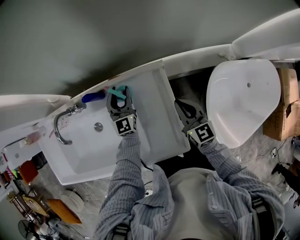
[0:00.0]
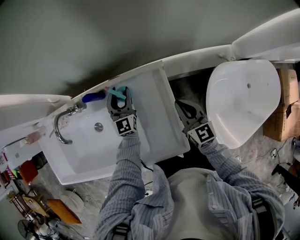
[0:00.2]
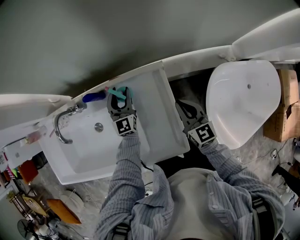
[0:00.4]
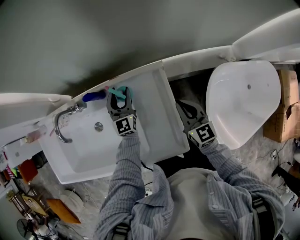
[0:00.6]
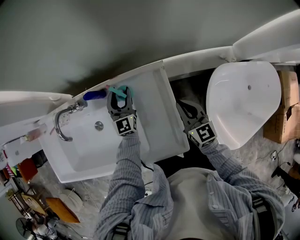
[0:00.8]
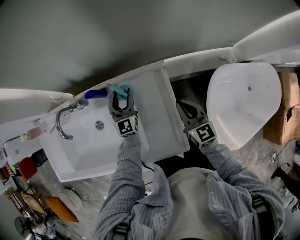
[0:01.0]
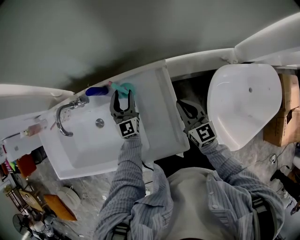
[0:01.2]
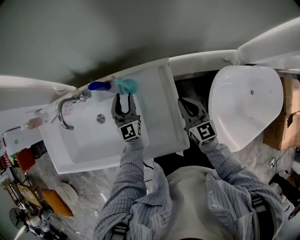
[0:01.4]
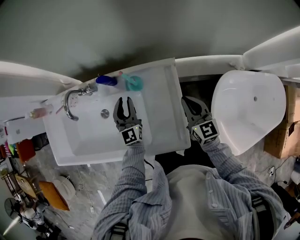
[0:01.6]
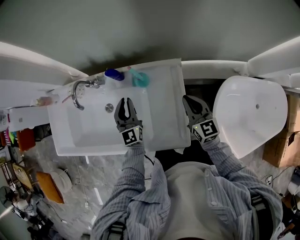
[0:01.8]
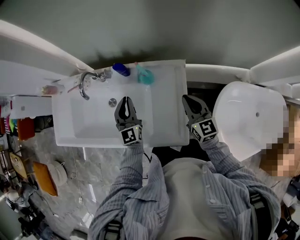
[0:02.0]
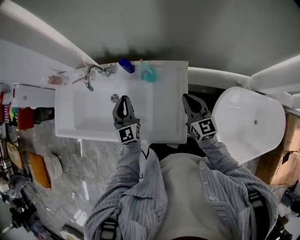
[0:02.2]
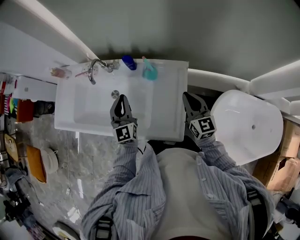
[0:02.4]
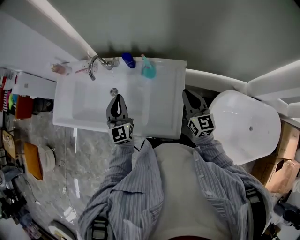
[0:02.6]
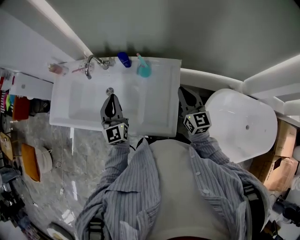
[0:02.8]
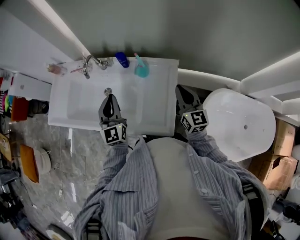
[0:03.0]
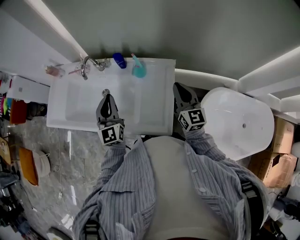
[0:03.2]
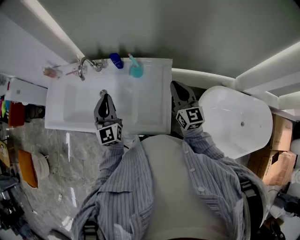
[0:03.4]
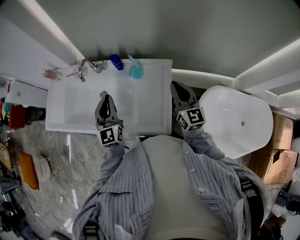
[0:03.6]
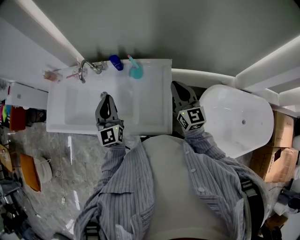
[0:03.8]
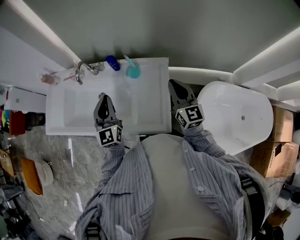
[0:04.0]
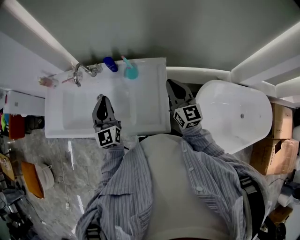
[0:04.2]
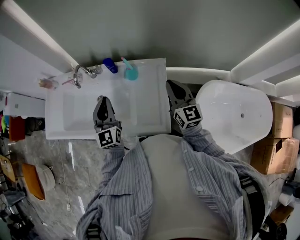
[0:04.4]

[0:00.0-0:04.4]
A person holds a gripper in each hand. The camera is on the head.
0:00.0 to 0:01.4: The left gripper is displaced backward by roughly 5 cm.
0:01.4 to 0:03.0: The right gripper moves upward and backward, about 15 cm. The left gripper shifts roughly 30 cm upward, backward and to the left, and closes its fingers.
0:03.0 to 0:04.4: The grippers make only small movements.

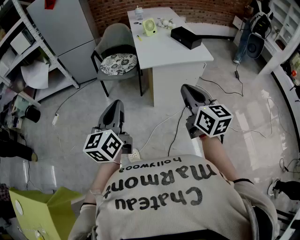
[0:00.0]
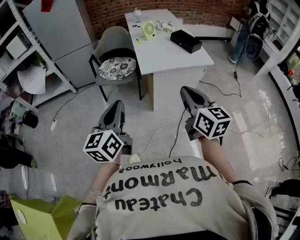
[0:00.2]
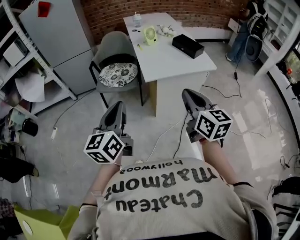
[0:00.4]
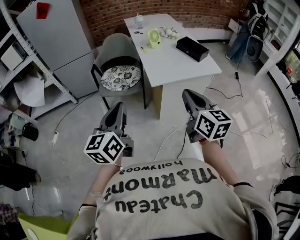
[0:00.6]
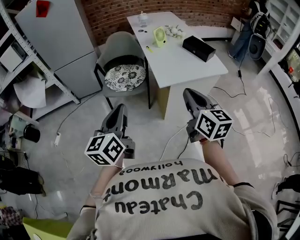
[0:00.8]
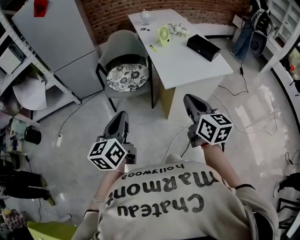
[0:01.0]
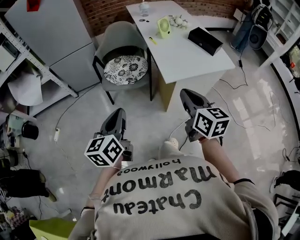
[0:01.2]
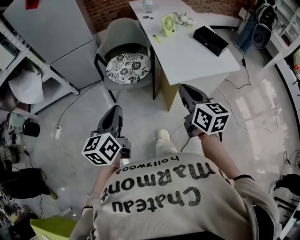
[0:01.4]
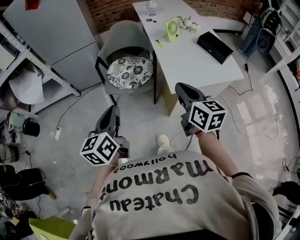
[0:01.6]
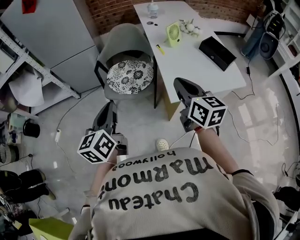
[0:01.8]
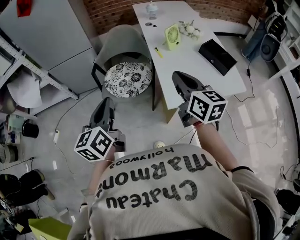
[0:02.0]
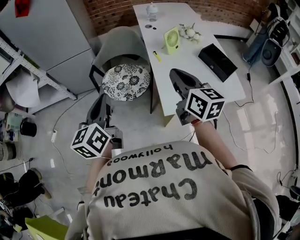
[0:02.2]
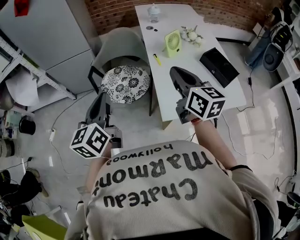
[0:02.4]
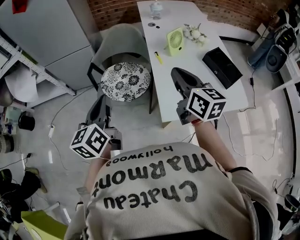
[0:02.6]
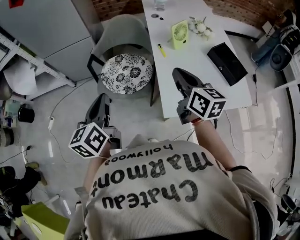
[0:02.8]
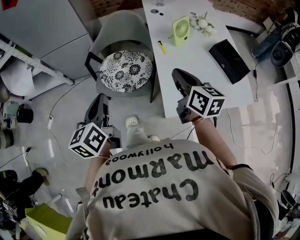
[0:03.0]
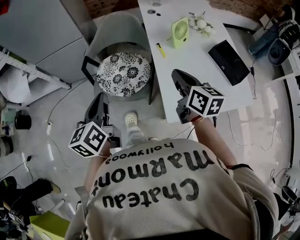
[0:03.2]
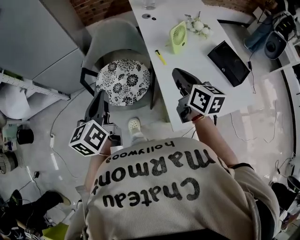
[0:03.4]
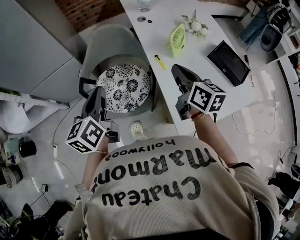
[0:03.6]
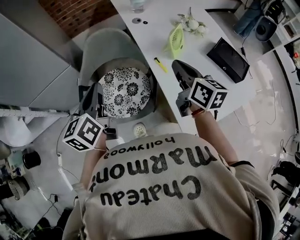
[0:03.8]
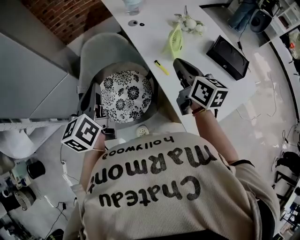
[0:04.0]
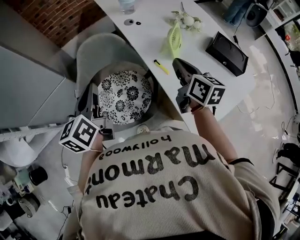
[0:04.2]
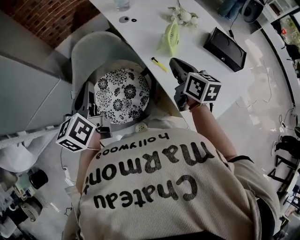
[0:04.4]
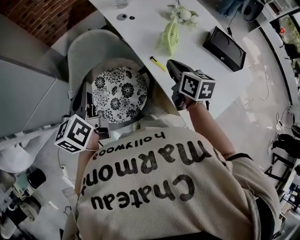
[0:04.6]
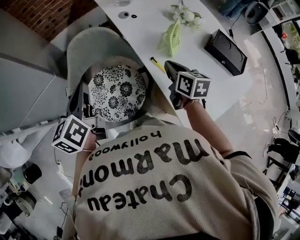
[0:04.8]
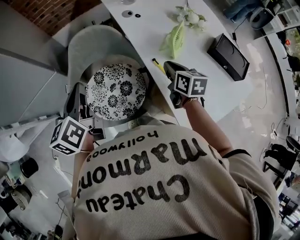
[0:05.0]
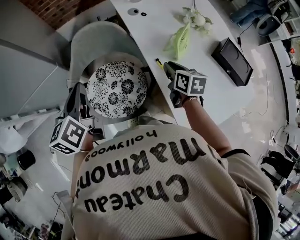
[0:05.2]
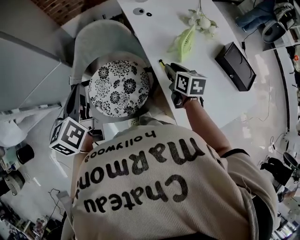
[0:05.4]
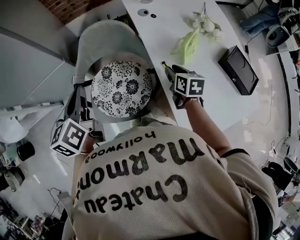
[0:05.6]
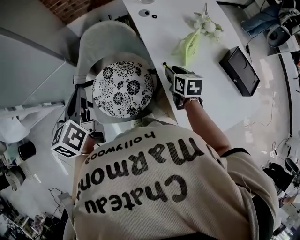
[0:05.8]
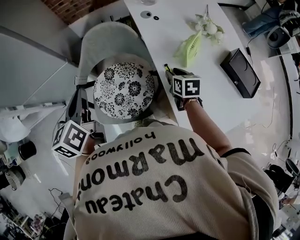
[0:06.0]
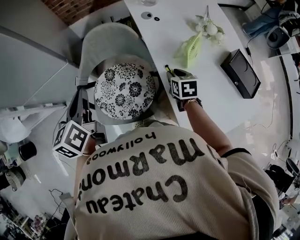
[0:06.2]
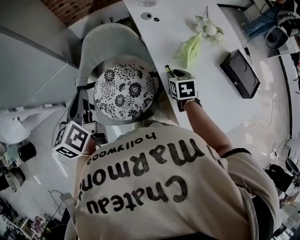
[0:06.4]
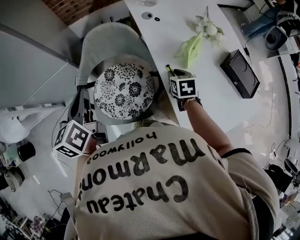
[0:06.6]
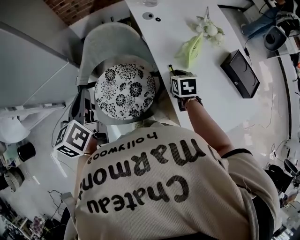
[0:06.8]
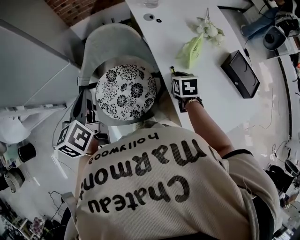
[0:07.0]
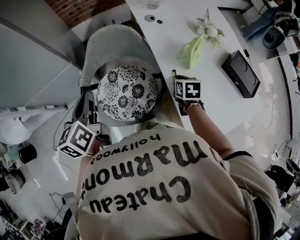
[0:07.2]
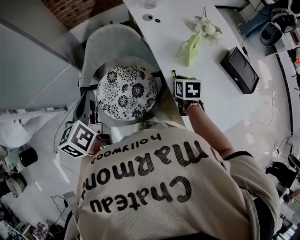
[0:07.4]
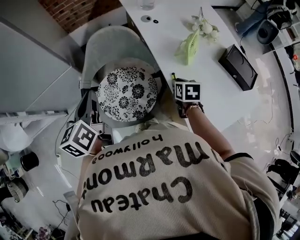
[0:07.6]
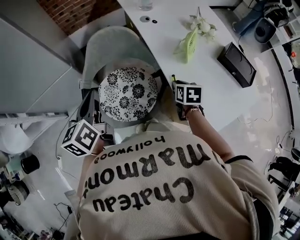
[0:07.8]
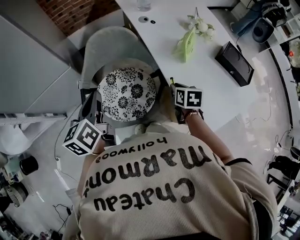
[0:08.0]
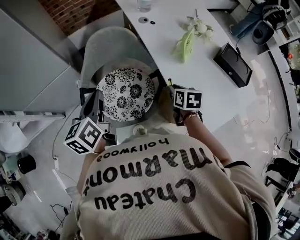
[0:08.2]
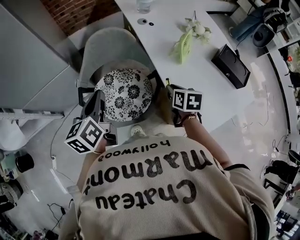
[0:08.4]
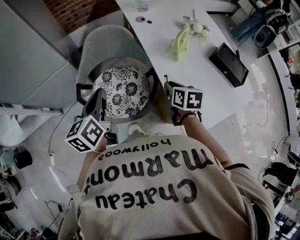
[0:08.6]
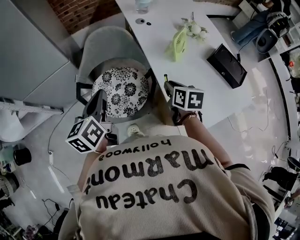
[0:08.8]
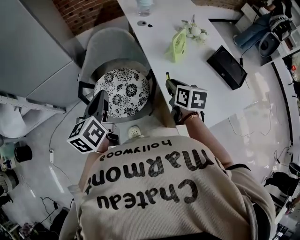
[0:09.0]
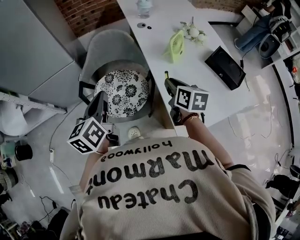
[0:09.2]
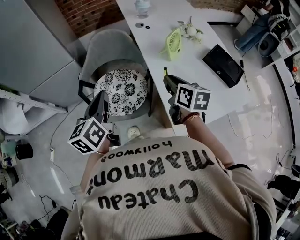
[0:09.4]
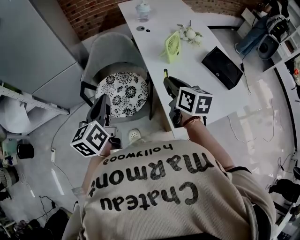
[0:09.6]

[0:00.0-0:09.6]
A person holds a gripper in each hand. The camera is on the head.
0:00.0 to 0:01.6: Both grippers move forward and to the left, about 35 cm.
0:01.6 to 0:03.2: The grippers both shift forward by roughly 25 cm.
0:03.2 to 0:04.8: The left gripper heads forward, covering some 30 cm; the right gripper heads forward and downward, covering about 20 cm, and rotates about 30 degrees.
0:04.8 to 0:06.4: The right gripper is displaced downward by roughly 10 cm, swivels approximately 30 degrees, and opens its fingers.
0:06.4 to 0:08.0: The right gripper moves backward, about 10 cm.
0:08.0 to 0:09.6: The right gripper heads upward and backward, covering roughly 20 cm, and changes its angle by about 30 degrees. The left gripper shifts approximately 20 cm backward and to the right.

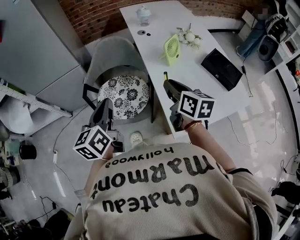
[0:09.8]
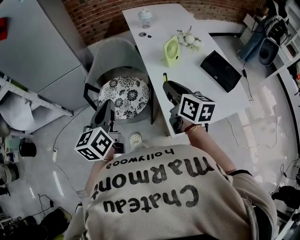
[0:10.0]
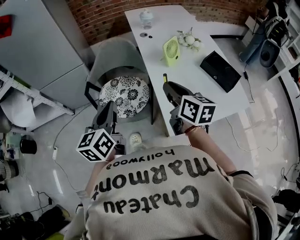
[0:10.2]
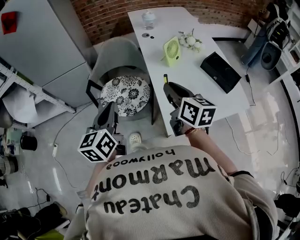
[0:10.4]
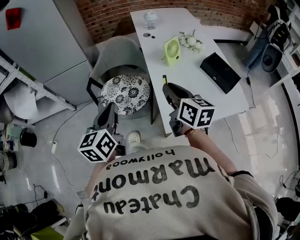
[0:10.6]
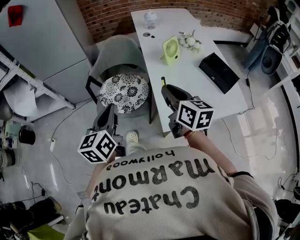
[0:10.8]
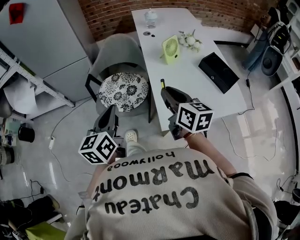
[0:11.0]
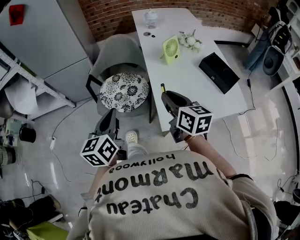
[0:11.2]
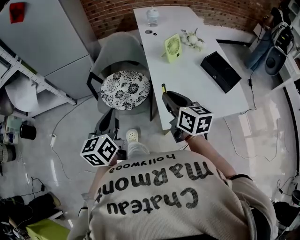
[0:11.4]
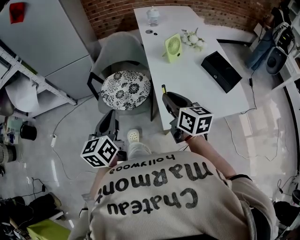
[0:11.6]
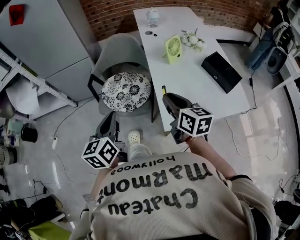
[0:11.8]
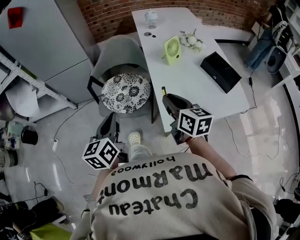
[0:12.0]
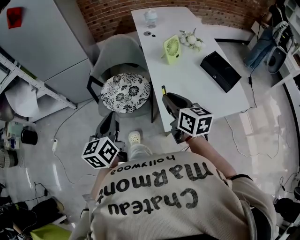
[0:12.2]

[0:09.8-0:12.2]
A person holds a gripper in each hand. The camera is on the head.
0:09.8 to 0:11.0: Both grippers travel together backward, approximately 10 cm.
0:11.0 to 0:12.2: The grippers make only small movements.

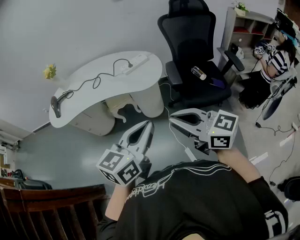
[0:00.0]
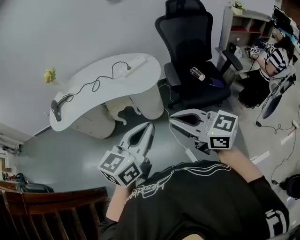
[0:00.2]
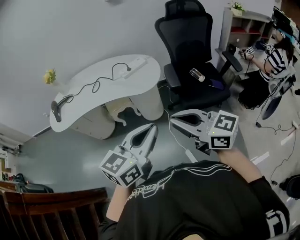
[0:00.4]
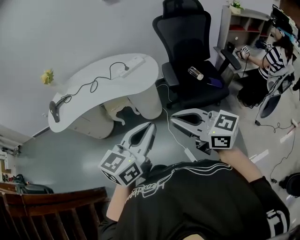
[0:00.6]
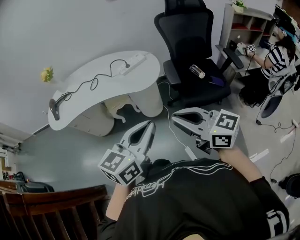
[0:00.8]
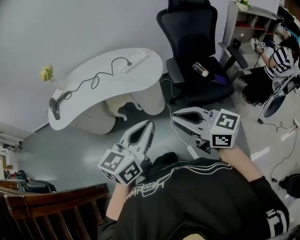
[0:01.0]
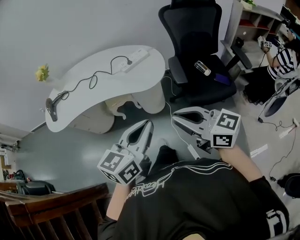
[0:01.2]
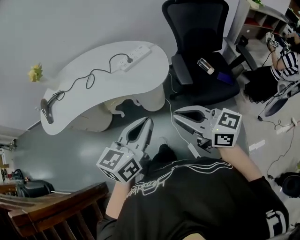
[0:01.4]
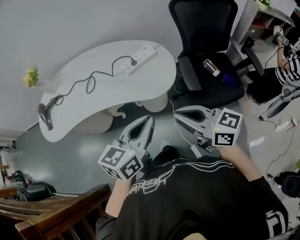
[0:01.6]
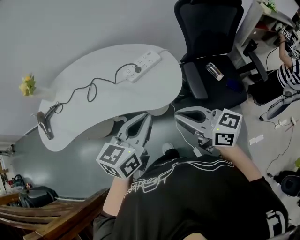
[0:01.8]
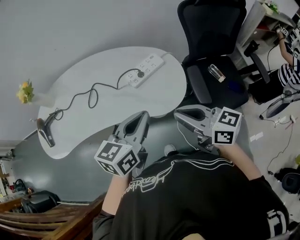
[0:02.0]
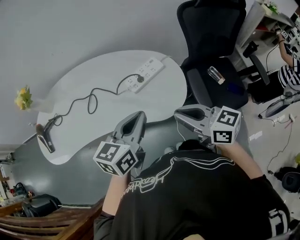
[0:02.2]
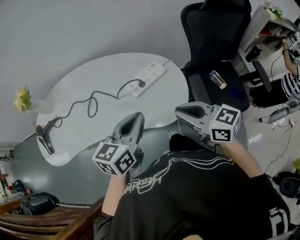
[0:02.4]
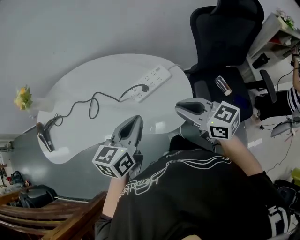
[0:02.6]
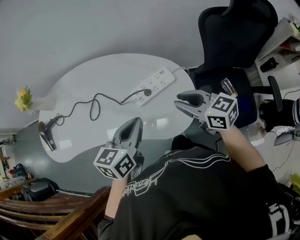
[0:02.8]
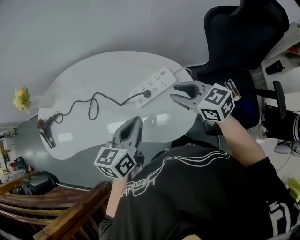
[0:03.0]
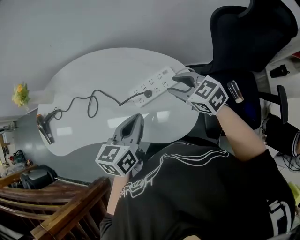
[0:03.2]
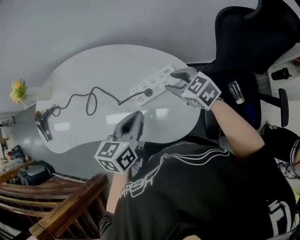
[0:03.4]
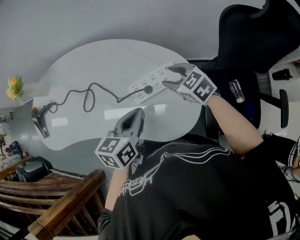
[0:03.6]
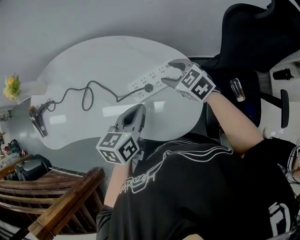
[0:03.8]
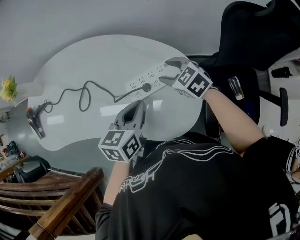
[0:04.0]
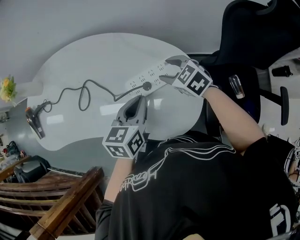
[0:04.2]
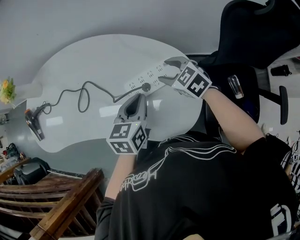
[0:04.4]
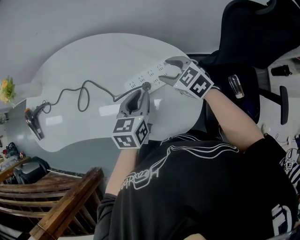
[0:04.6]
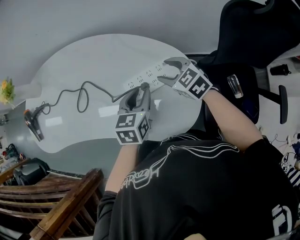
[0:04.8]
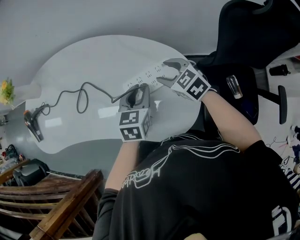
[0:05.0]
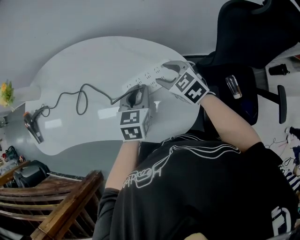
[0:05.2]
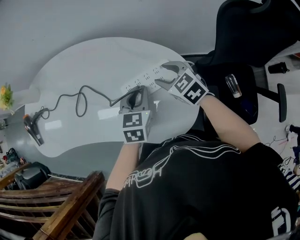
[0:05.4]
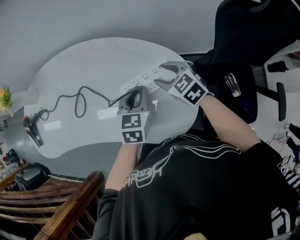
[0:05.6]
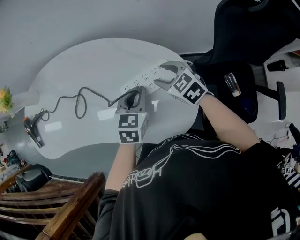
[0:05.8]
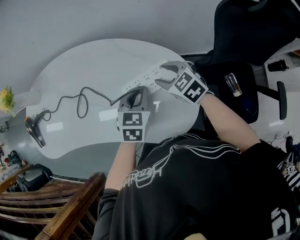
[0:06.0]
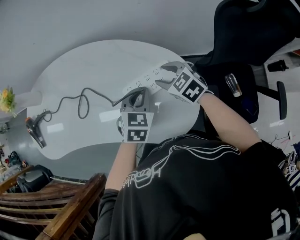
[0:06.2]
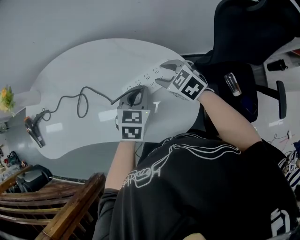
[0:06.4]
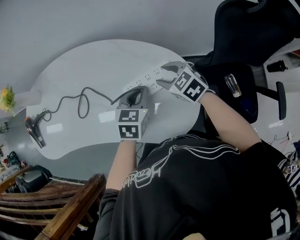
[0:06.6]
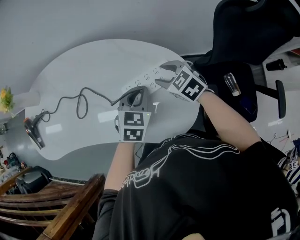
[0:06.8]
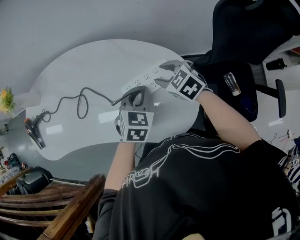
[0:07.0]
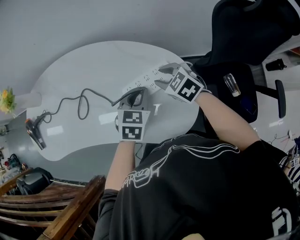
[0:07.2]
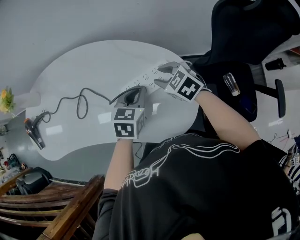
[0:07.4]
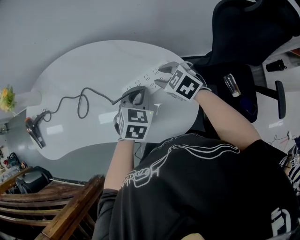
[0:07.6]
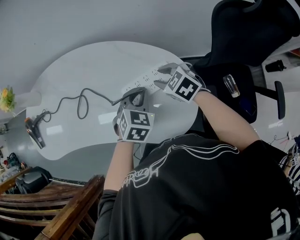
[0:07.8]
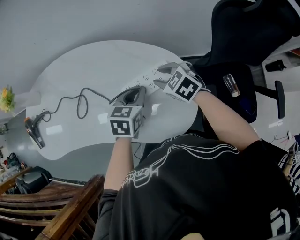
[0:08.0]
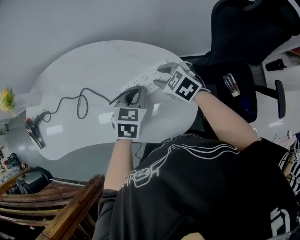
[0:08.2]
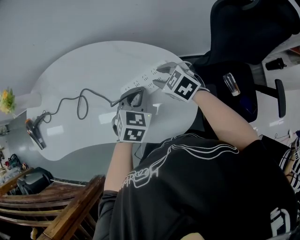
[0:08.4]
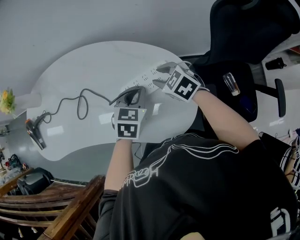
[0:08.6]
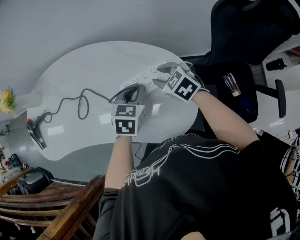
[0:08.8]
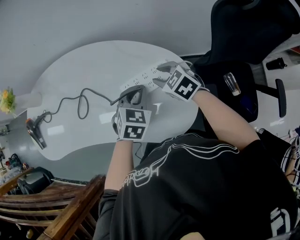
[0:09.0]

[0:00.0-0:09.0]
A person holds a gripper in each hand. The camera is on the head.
0:00.0 to 0:01.6: Both grippers move forward, about 25 cm.
0:01.6 to 0:03.0: Both grippers travel together forward, about 35 cm. The right gripper rotates some 20 degrees, and opens.
0:03.0 to 0:04.4: The two grippers go approximately 15 cm downward and forward. The right gripper changes its angle by approximately 30 degrees, and opens.
0:04.4 to 0:06.0: The left gripper swivels some 20 degrees.
0:06.0 to 0:07.6: The grippers make only small movements.
